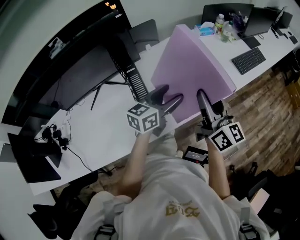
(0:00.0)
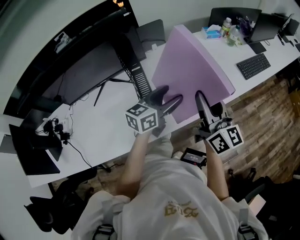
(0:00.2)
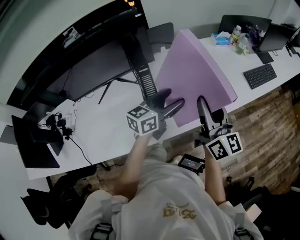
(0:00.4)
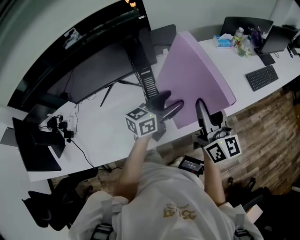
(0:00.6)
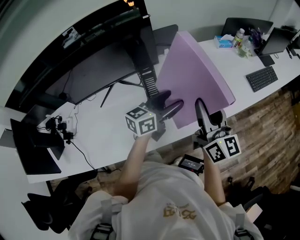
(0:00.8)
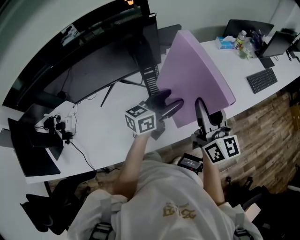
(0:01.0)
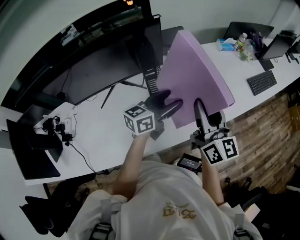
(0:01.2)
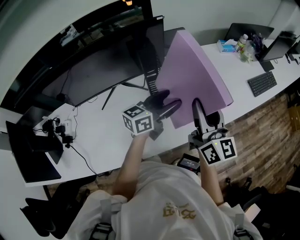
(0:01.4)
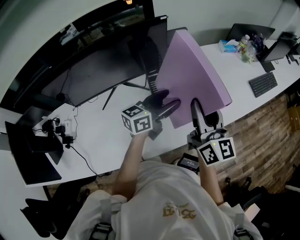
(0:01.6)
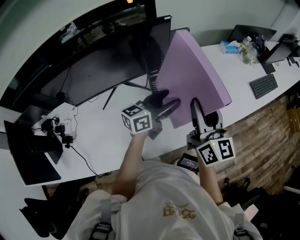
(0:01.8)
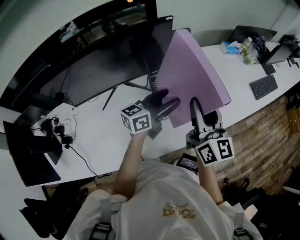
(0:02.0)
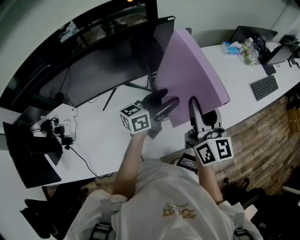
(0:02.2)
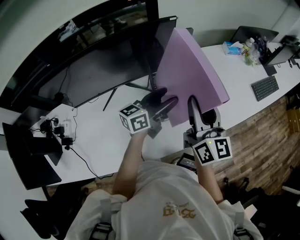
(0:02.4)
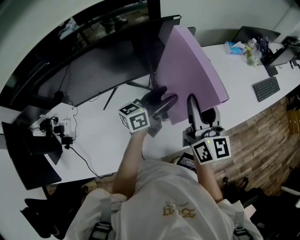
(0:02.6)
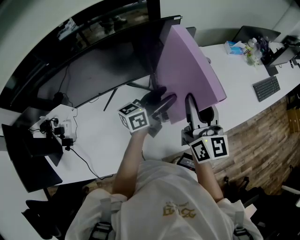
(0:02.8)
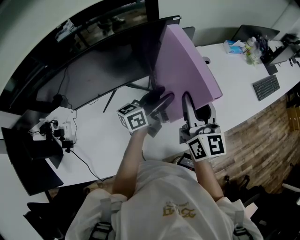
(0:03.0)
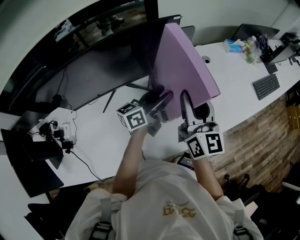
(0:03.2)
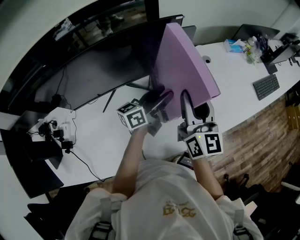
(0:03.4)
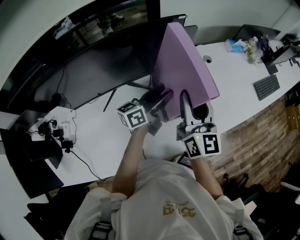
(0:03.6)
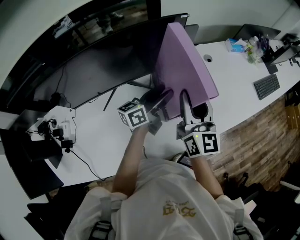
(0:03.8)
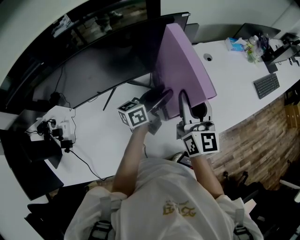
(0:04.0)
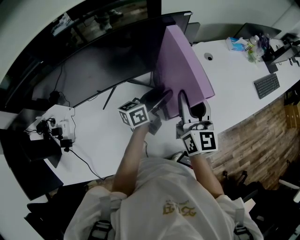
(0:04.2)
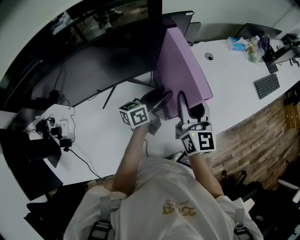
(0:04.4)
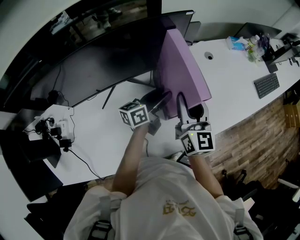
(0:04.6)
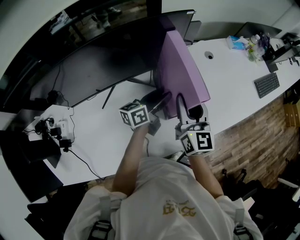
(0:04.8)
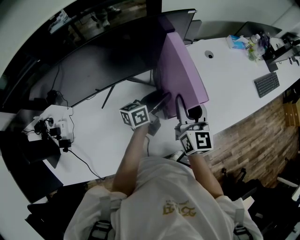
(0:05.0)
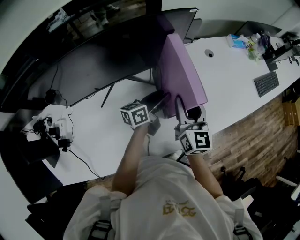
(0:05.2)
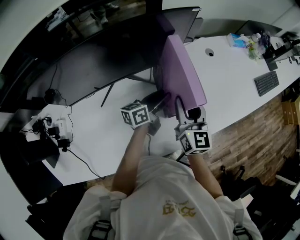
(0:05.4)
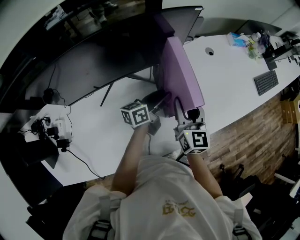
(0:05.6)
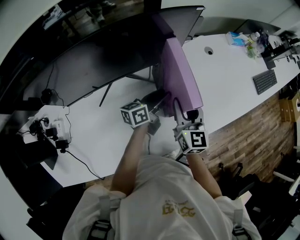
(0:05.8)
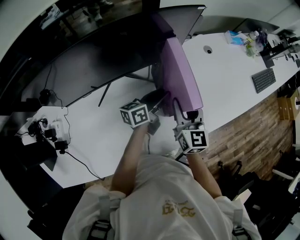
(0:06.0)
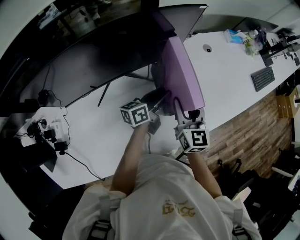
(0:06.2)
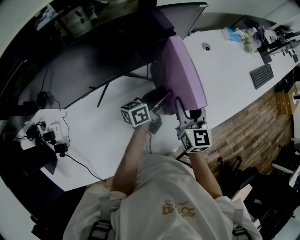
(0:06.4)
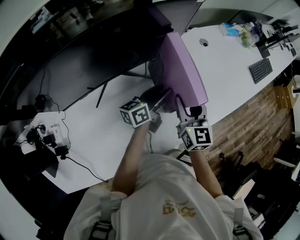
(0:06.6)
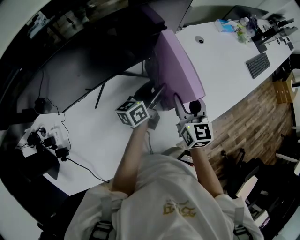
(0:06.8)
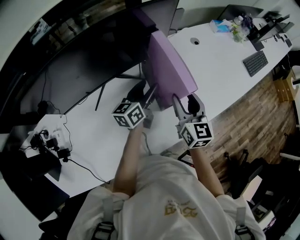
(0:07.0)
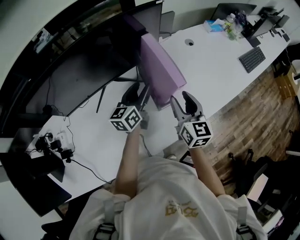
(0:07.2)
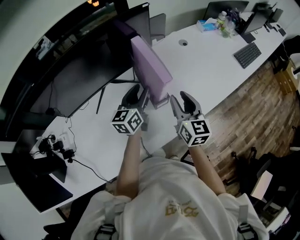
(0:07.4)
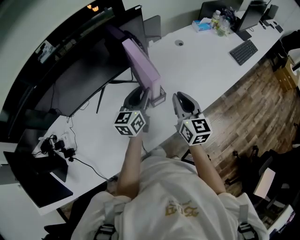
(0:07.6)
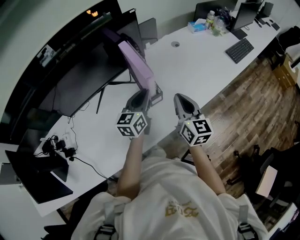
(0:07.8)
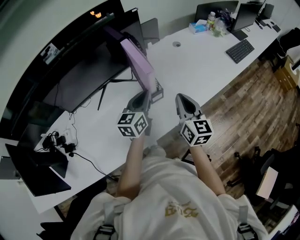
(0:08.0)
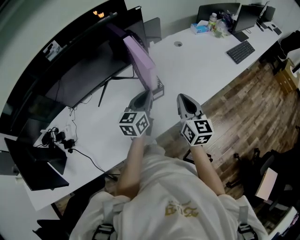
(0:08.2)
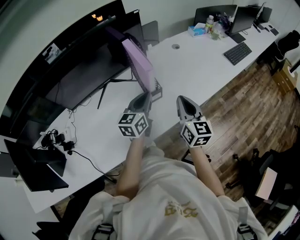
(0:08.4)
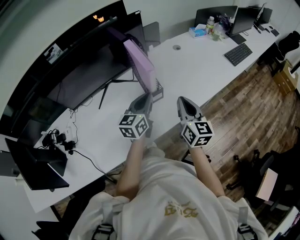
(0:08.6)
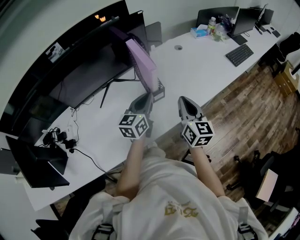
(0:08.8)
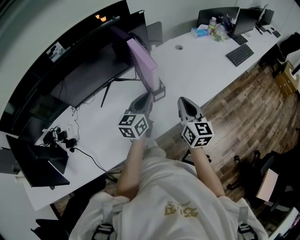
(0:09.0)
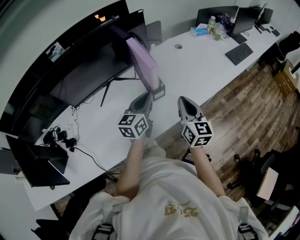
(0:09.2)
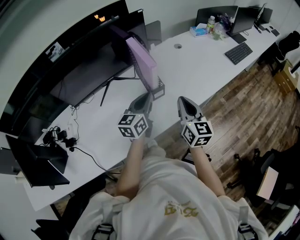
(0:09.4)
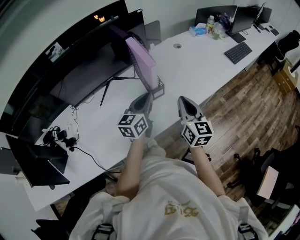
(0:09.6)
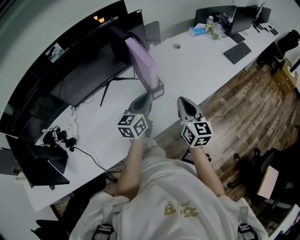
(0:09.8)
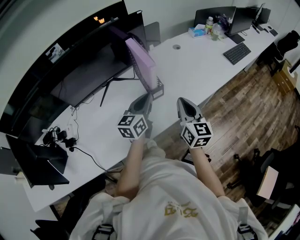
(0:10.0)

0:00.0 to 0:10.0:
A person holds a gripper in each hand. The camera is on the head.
0:00.0 to 0:01.4: The grippers both shift to the left by approximately 15 cm.
0:01.4 to 0:02.8: Both grippers move to the left, about 10 cm.
0:02.8 to 0:04.2: The left gripper moves roughly 5 cm, while the right gripper changes place by approximately 5 cm.
0:04.2 to 0:05.8: Both grippers travel together downward, some 10 cm.
0:05.8 to 0:07.2: The left gripper moves roughly 5 cm, and turns by some 30 degrees. Meanwhile the right gripper travels to the right by some 5 cm.
0:07.2 to 0:08.6: Both grippers move backward and to the right, approximately 15 cm. The left gripper closes up. Meanwhile the right gripper closes its fingers.
0:08.6 to 0:10.0: The grippers move only a little.

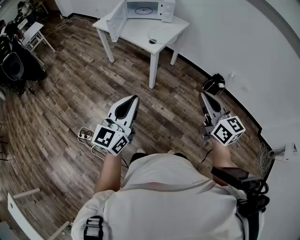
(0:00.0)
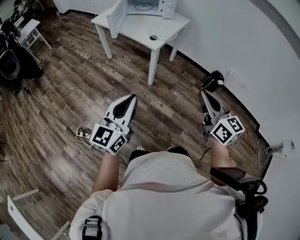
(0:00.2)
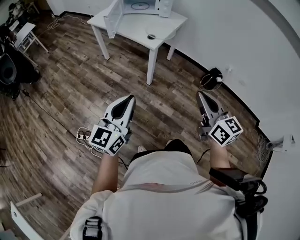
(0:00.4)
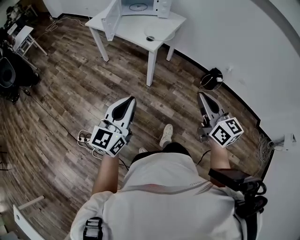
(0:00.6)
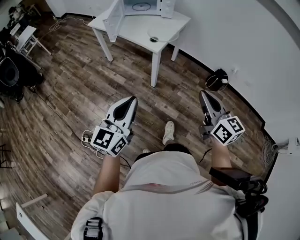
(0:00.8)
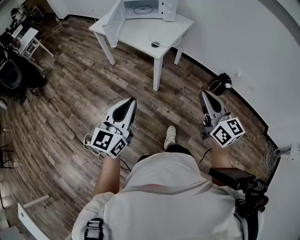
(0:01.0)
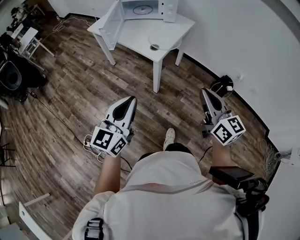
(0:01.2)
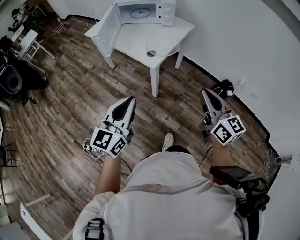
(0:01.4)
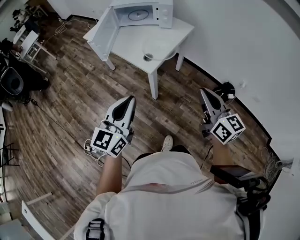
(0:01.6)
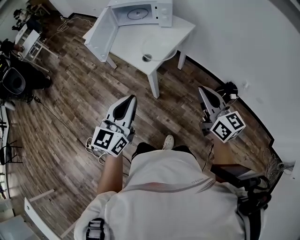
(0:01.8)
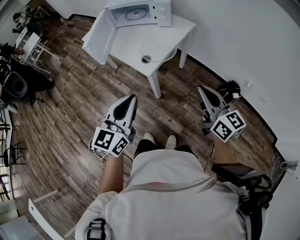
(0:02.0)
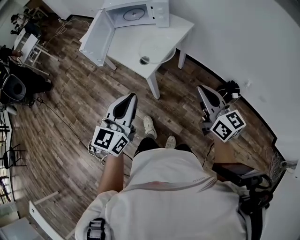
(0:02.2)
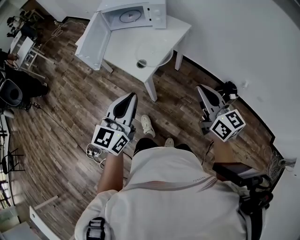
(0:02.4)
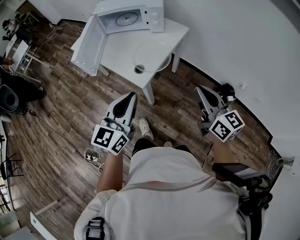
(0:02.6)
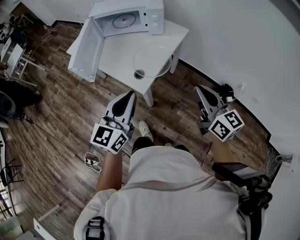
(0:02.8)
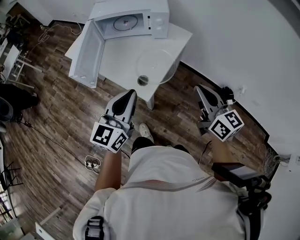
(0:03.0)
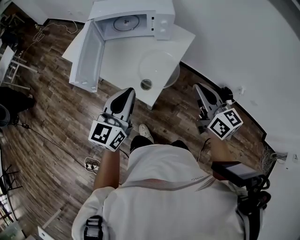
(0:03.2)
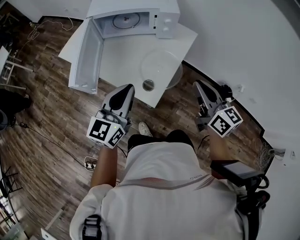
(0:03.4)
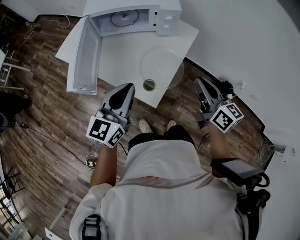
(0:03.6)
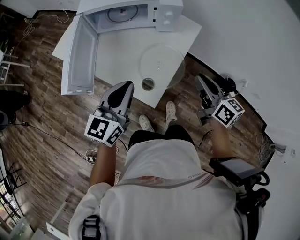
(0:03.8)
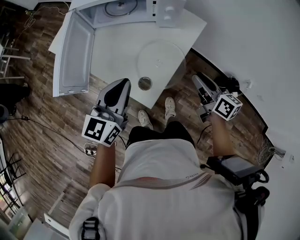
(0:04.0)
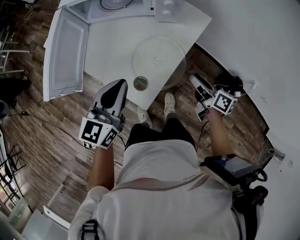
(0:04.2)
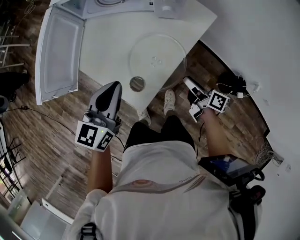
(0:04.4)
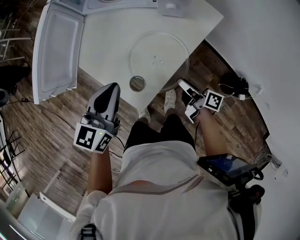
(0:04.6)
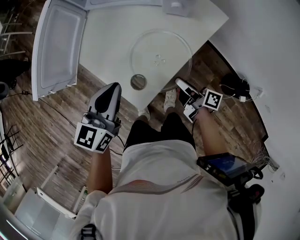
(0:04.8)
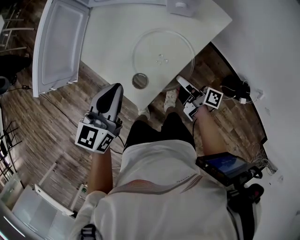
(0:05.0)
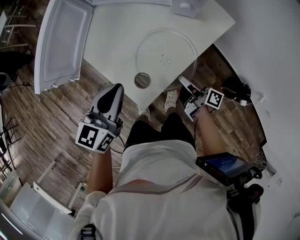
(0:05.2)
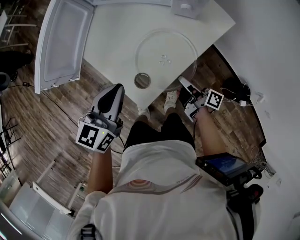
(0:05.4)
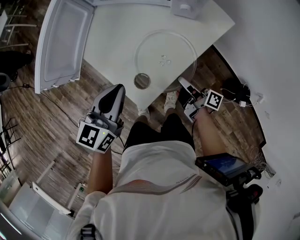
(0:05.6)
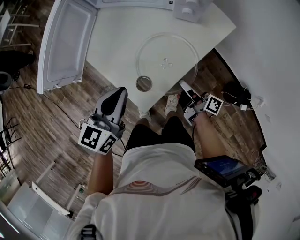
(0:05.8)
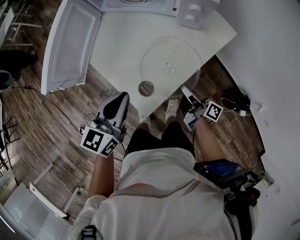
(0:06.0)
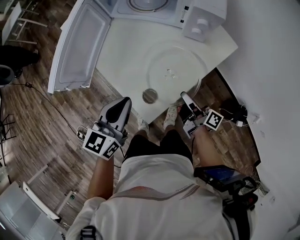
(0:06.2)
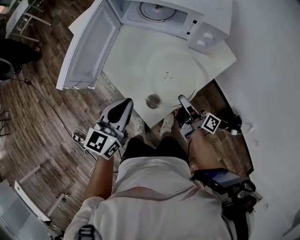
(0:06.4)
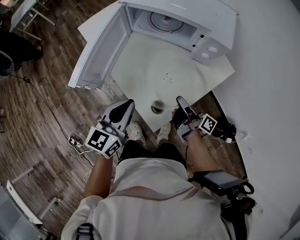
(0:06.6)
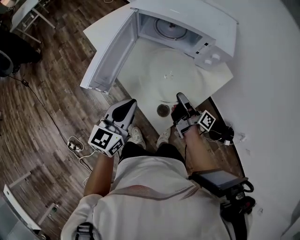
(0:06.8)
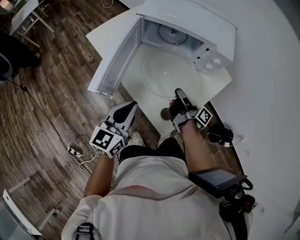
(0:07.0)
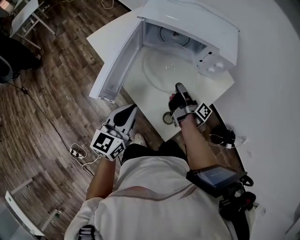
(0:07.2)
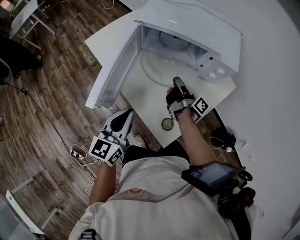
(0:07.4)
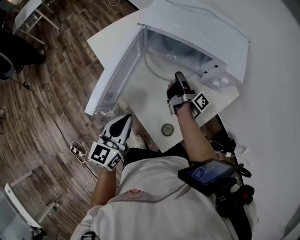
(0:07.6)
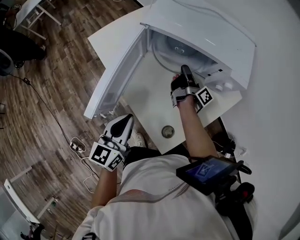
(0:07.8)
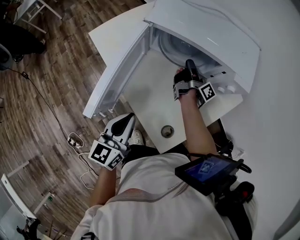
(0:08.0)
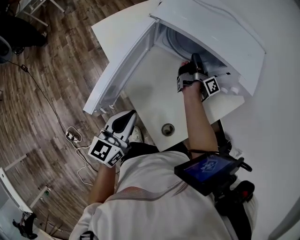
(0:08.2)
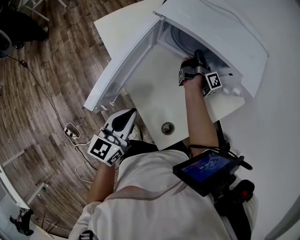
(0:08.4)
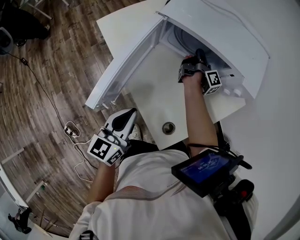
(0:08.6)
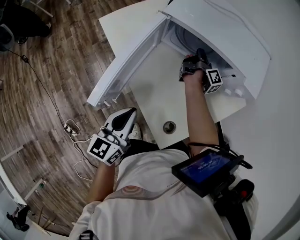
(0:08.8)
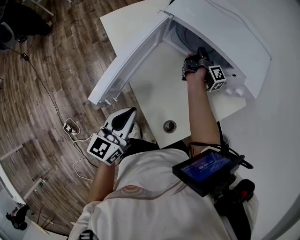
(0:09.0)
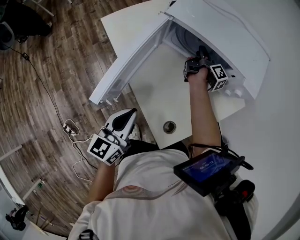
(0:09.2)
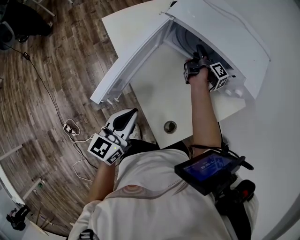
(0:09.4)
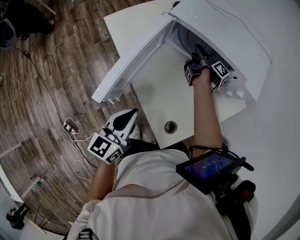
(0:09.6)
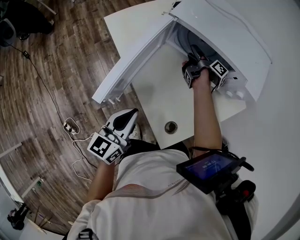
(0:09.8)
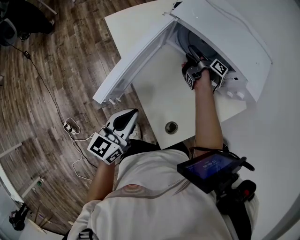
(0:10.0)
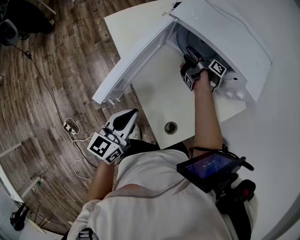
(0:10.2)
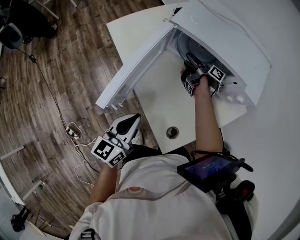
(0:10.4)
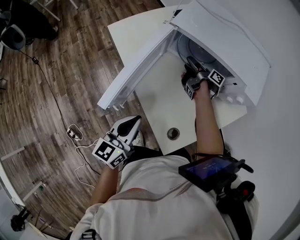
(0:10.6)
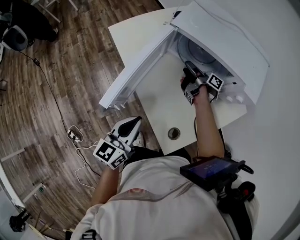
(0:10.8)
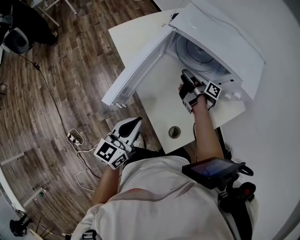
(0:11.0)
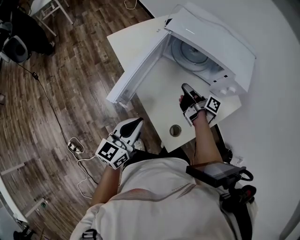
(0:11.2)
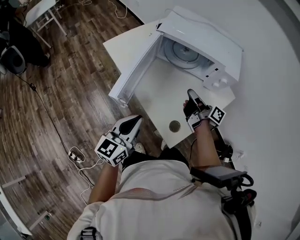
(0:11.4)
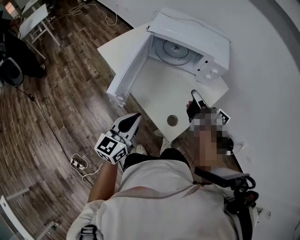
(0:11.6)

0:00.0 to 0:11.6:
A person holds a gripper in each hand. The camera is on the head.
0:00.0 to 0:01.4: Both grippers move forward, roughly 20 cm.
0:01.4 to 0:02.8: Both grippers travel together forward, about 20 cm.
0:02.8 to 0:04.4: The left gripper moves forward and downward, some 25 cm; the right gripper heads downward and forward, covering some 35 cm, twists about 50 degrees clockwise, seen from behind, and opens its fingers.
0:04.4 to 0:05.8: The right gripper heads to the left, covering roughly 5 cm, and closes.
0:05.8 to 0:07.2: The left gripper heads to the left, covering approximately 15 cm. Meanwhile the right gripper travels forward, to the left and upward by roughly 25 cm.
0:07.2 to 0:08.8: The right gripper travels forward by some 25 cm, and swivels approximately 20 degrees.
0:08.8 to 0:10.2: The right gripper is displaced to the left by approximately 10 cm, swivels approximately 40 degrees, and opens.
0:10.2 to 0:11.6: The left gripper moves backward and upward, about 10 cm. The right gripper is displaced backward and upward by approximately 35 cm, swivels about 40 degrees, and closes.

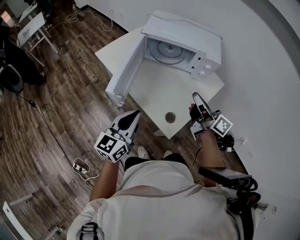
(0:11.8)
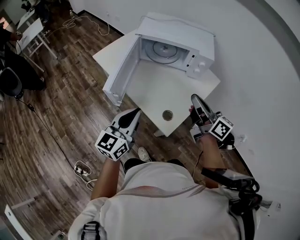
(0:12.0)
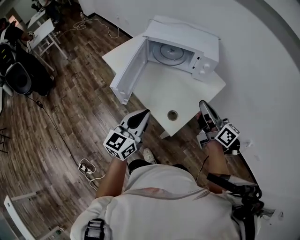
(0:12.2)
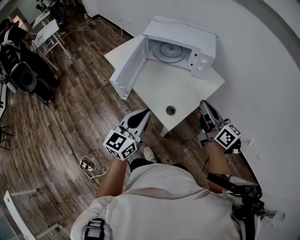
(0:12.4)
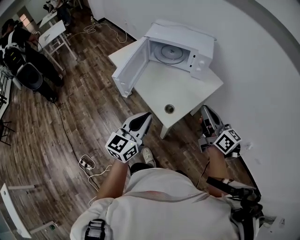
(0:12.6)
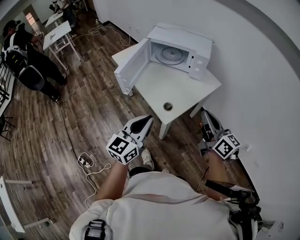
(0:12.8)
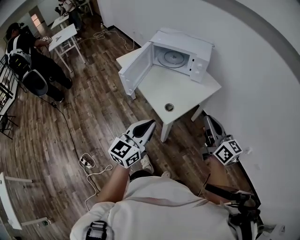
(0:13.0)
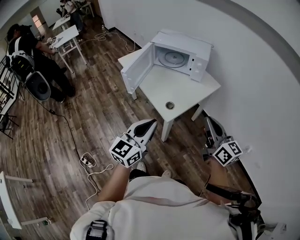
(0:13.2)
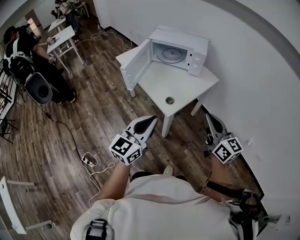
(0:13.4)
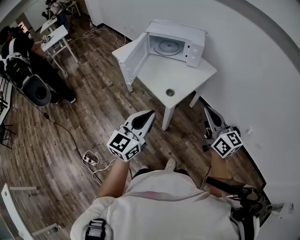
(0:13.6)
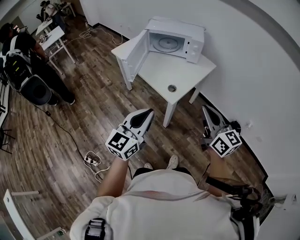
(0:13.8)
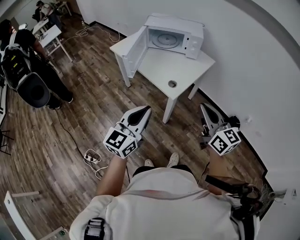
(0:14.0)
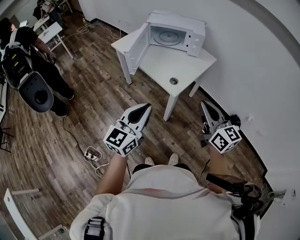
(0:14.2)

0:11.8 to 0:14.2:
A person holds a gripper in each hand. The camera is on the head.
0:11.8 to 0:13.0: The two grippers go about 25 cm backward and to the right. The right gripper changes its angle by approximately 30 degrees.
0:13.0 to 0:14.2: The two grippers go some 15 cm backward and to the left.
